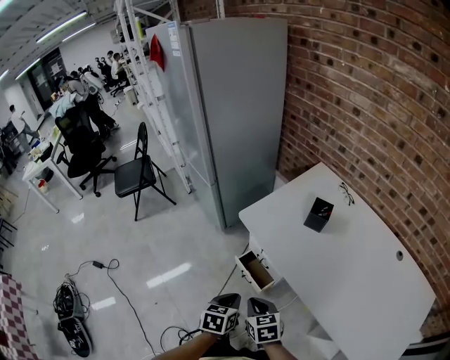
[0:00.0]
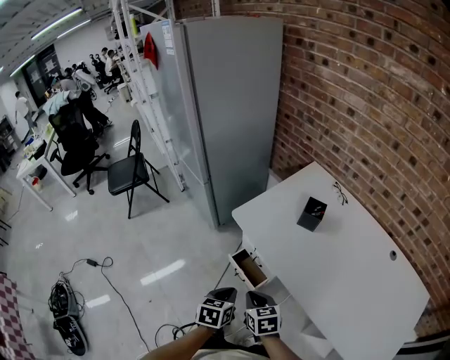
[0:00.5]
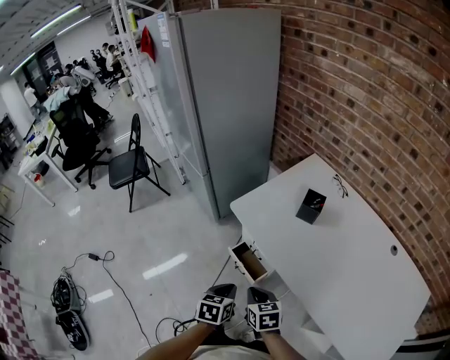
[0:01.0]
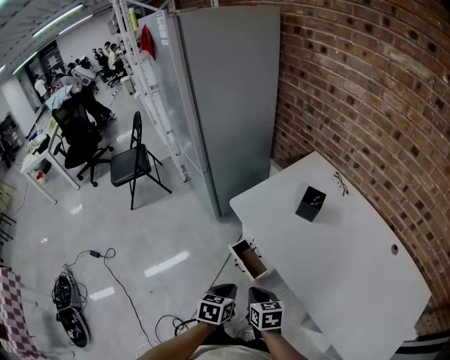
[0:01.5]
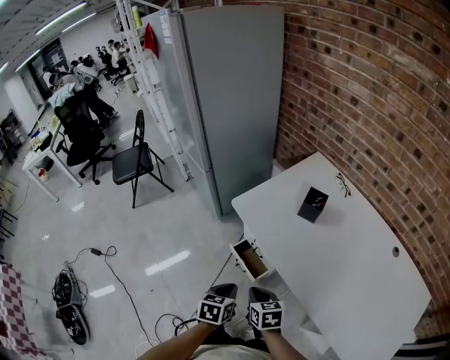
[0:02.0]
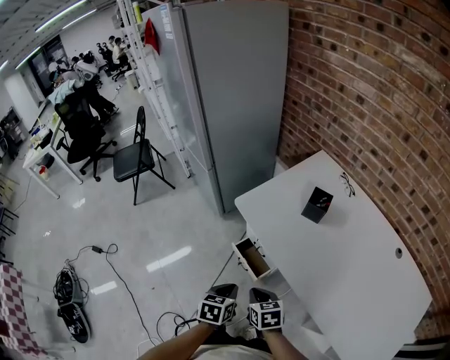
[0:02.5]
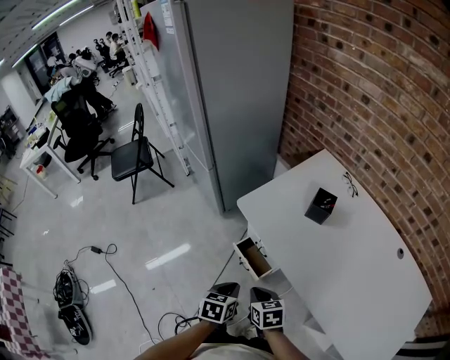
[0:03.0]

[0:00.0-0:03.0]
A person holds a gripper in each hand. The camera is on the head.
0:00.0 to 0:03.0: There are only small adjustments of the grippers.

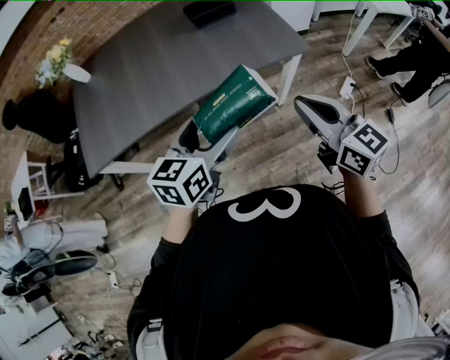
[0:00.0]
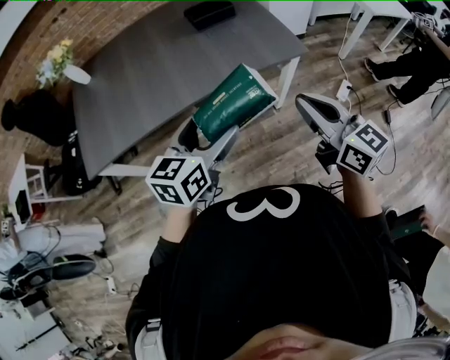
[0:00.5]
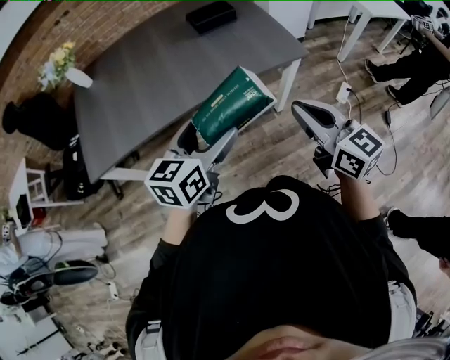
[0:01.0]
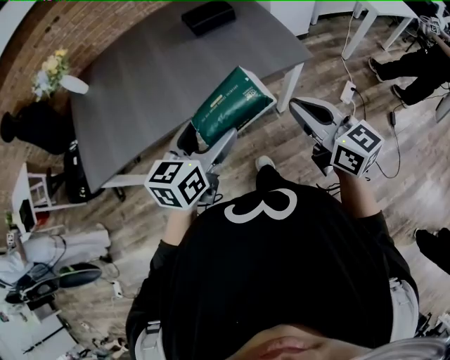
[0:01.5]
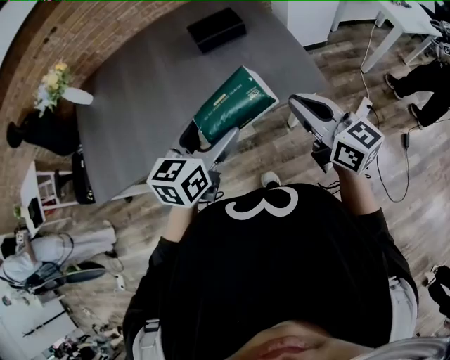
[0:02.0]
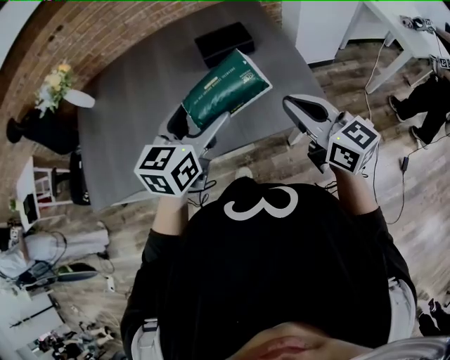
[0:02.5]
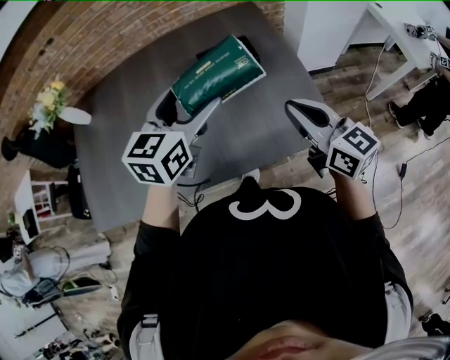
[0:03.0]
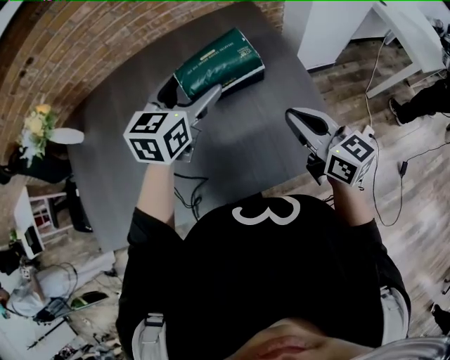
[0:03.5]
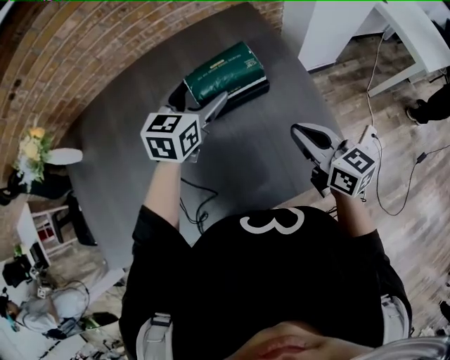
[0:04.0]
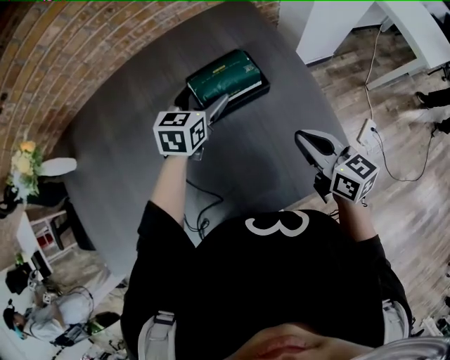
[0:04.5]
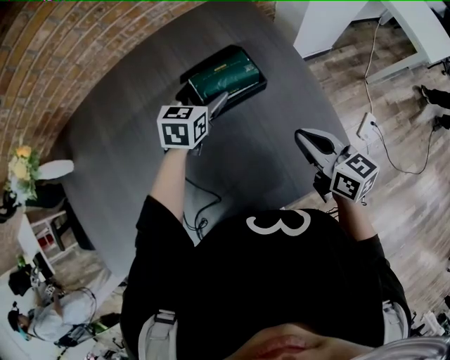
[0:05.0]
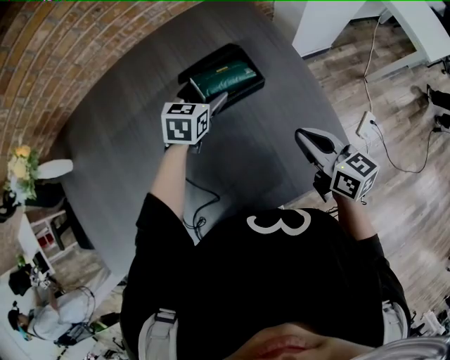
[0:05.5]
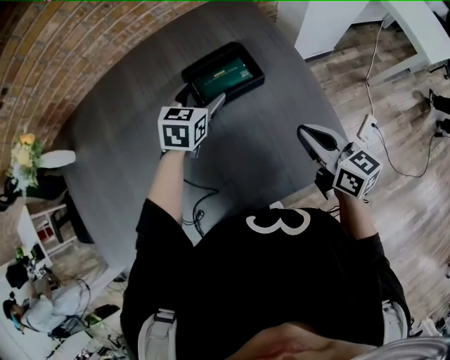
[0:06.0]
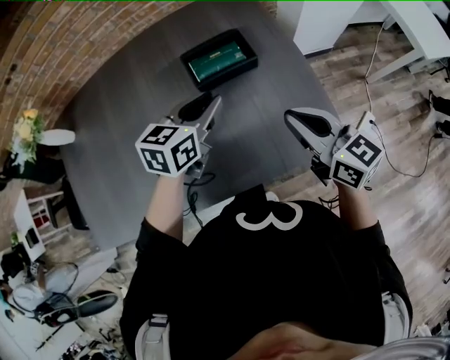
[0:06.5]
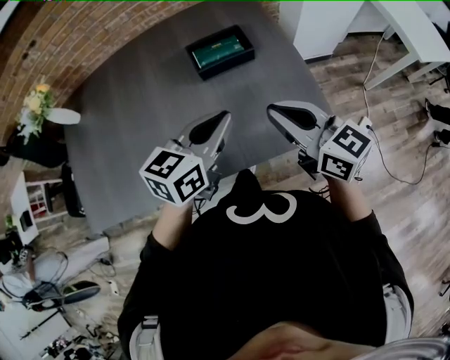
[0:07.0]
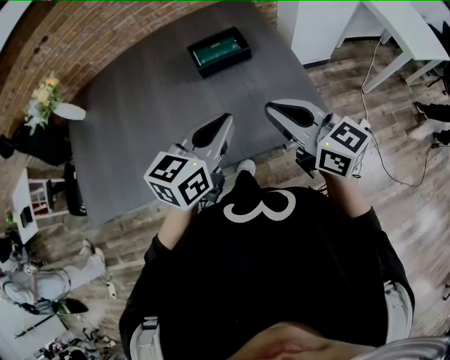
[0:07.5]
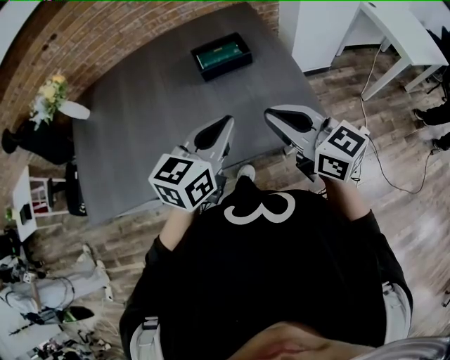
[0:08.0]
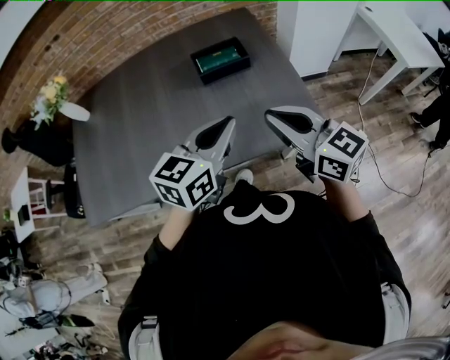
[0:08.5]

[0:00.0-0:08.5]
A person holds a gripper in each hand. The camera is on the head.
0:00.0 to 0:02.0: Both grippers travel together forward, about 20 cm.
0:02.0 to 0:04.0: The left gripper travels forward by roughly 40 cm; the right gripper goes about 25 cm forward.
0:04.0 to 0:06.5: The right gripper travels backward by approximately 5 cm. The left gripper travels backward by about 10 cm, and closes.
0:06.5 to 0:08.5: The right gripper moves backward and upward, about 15 cm. Meanwhile the left gripper goes roughly 20 cm backward.

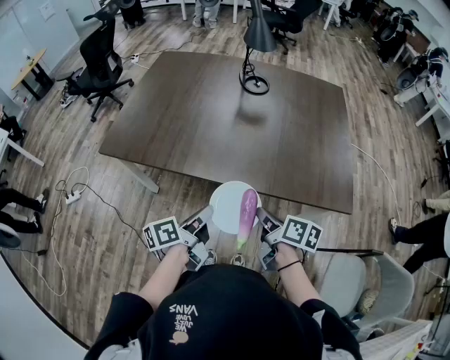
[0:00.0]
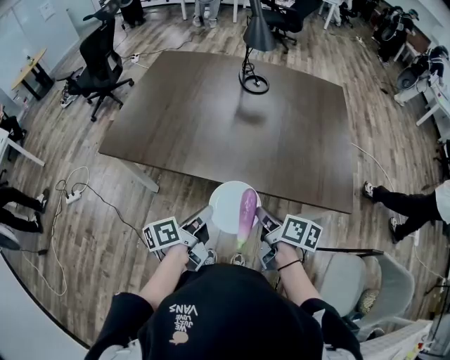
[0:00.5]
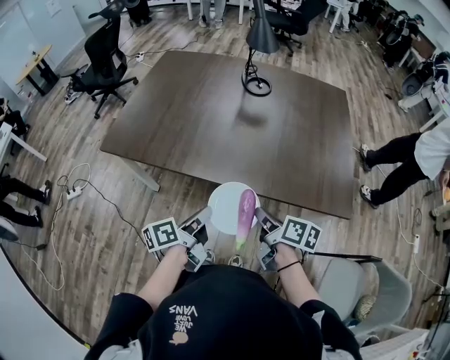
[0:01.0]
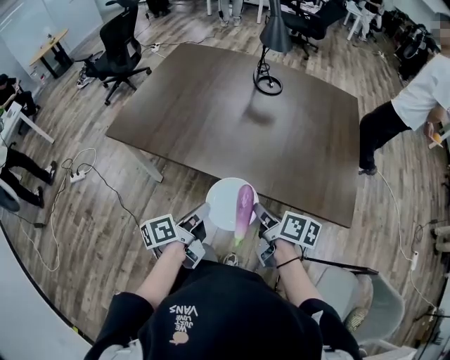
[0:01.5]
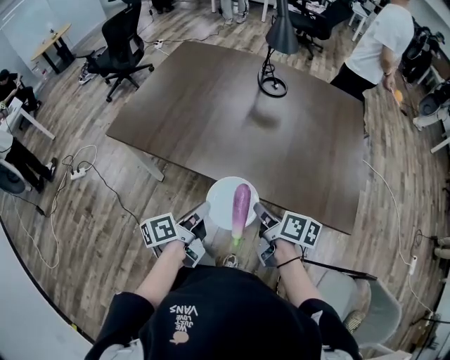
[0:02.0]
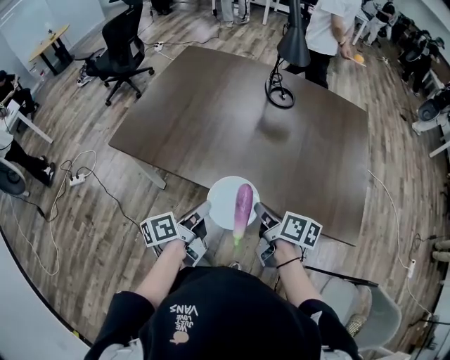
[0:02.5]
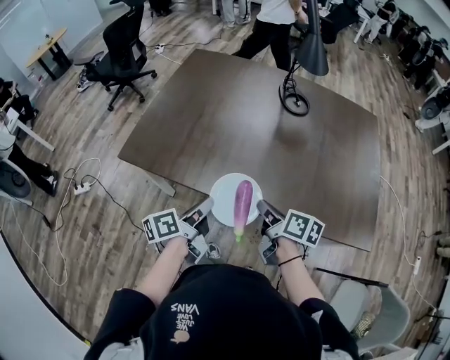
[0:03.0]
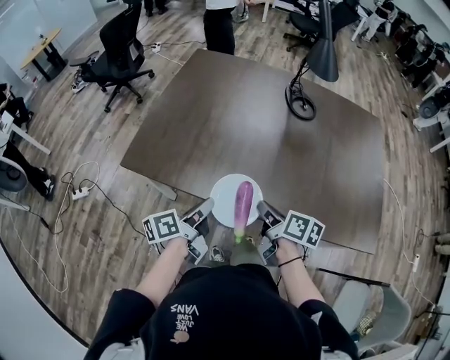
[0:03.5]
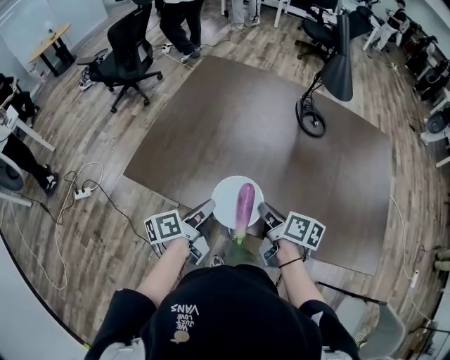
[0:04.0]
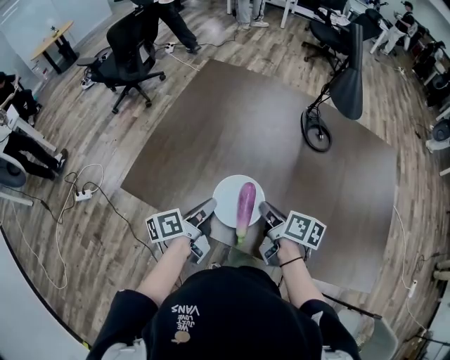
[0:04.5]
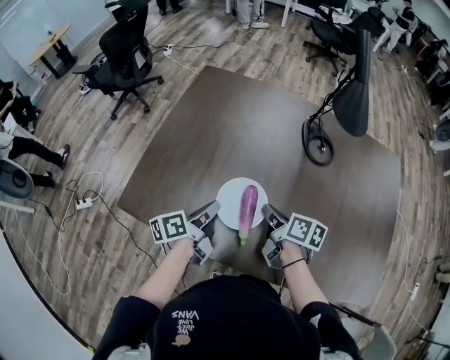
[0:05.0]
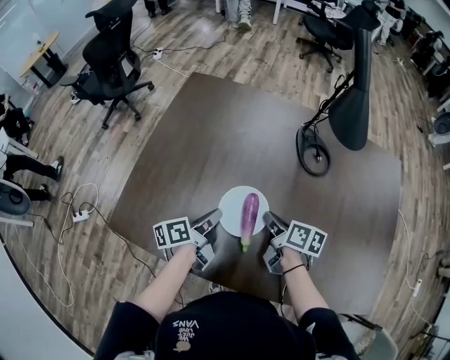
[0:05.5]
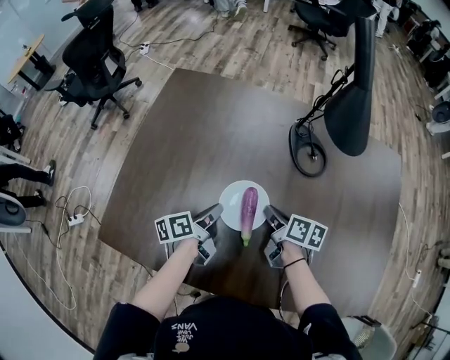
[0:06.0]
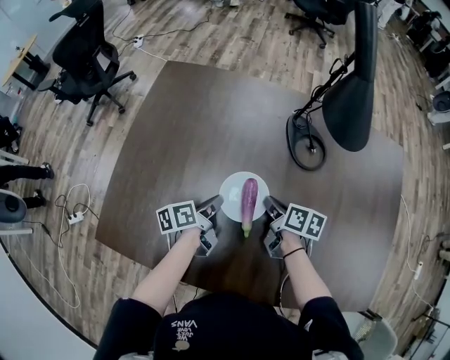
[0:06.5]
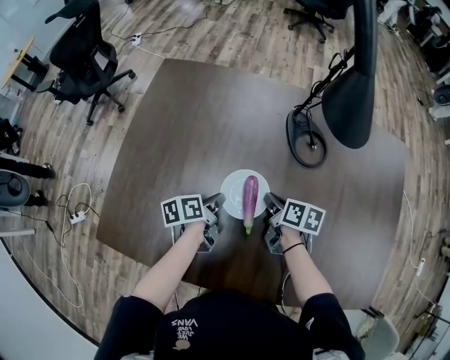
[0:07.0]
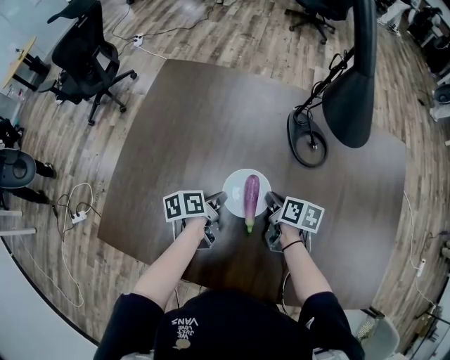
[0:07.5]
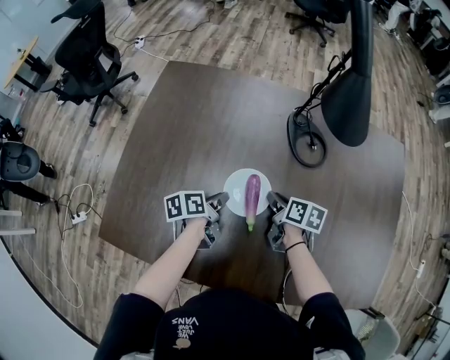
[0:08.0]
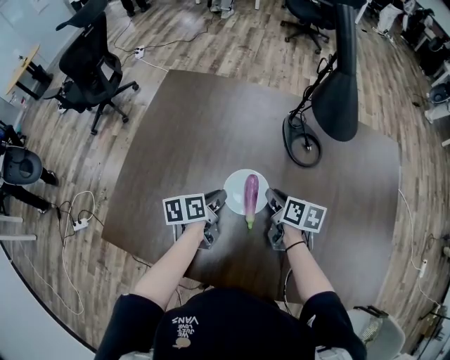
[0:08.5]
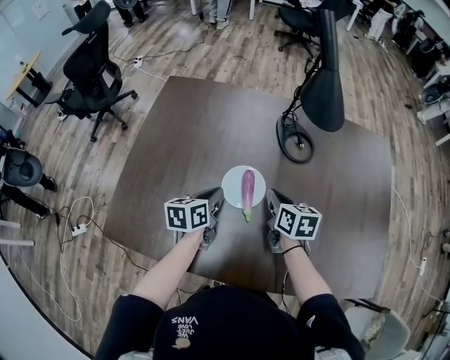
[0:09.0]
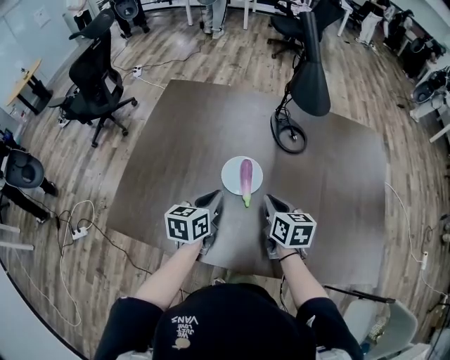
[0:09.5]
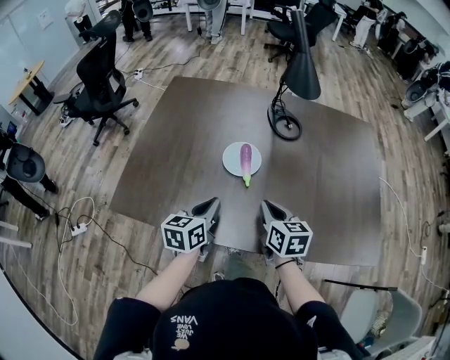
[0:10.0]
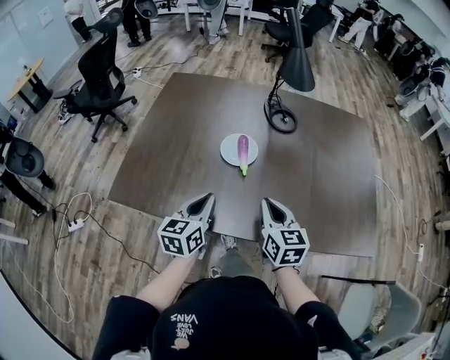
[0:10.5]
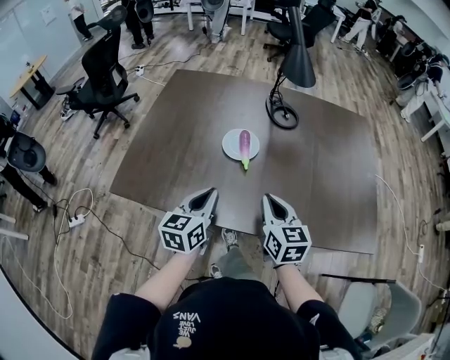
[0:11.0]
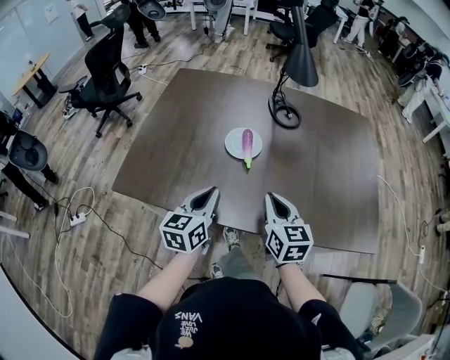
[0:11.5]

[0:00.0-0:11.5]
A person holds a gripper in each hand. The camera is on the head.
0:00.0 to 0:02.0: The grippers stay close to where they were, moving slightly.
0:02.0 to 0:04.0: The two grippers go about 30 cm forward and to the left.
0:04.0 to 0:06.0: Both grippers move forward, about 25 cm.
0:06.0 to 0:07.5: The right gripper ends up about 5 cm from where it was. Meanwhile the left gripper moves some 5 cm.
0:07.5 to 0:09.5: The right gripper shifts roughly 20 cm backward and upward, and turns by roughly 30 degrees. The left gripper goes about 15 cm upward and backward, and turns by some 40 degrees.
0:09.5 to 0:11.5: The grippers both shift backward by roughly 15 cm.

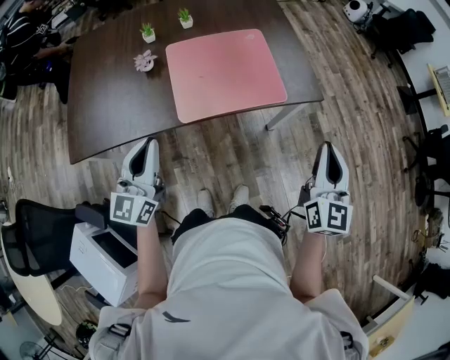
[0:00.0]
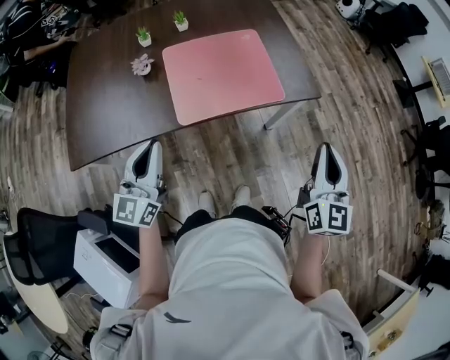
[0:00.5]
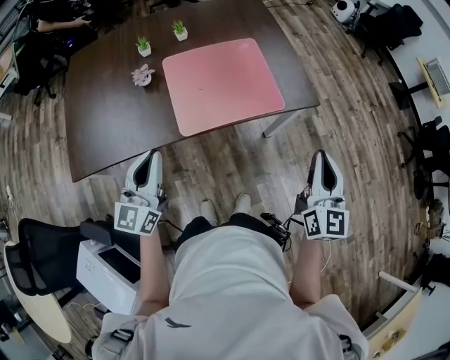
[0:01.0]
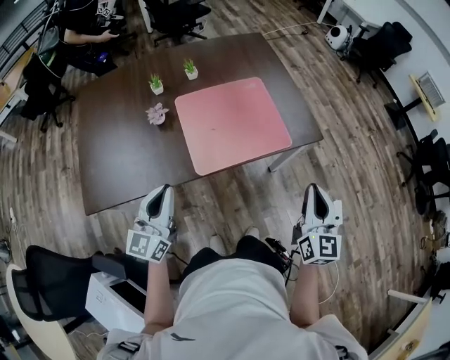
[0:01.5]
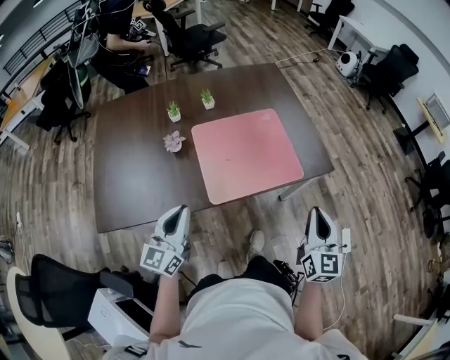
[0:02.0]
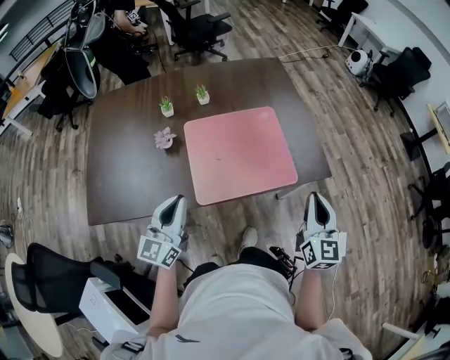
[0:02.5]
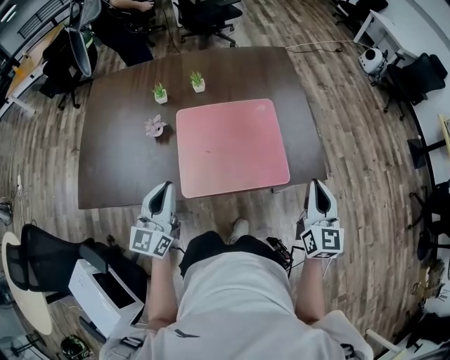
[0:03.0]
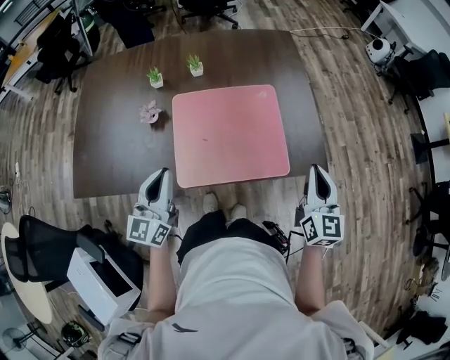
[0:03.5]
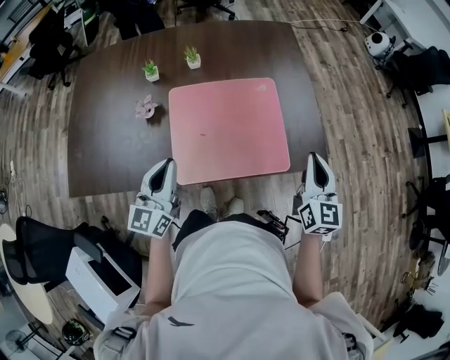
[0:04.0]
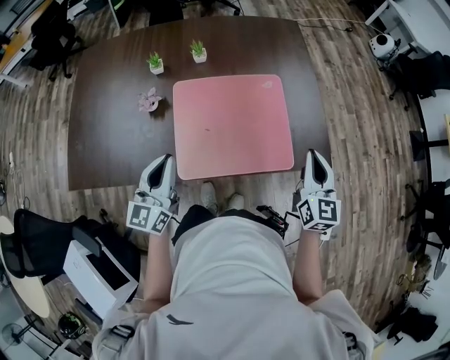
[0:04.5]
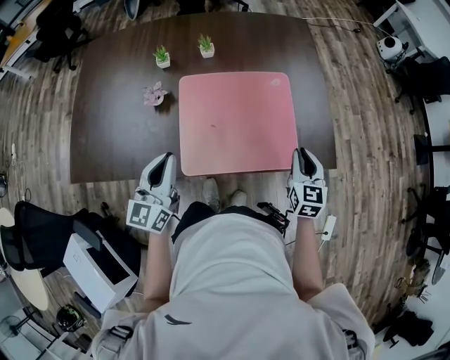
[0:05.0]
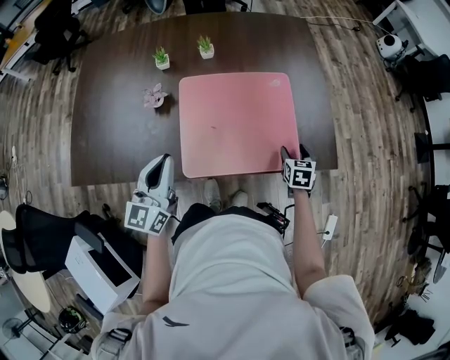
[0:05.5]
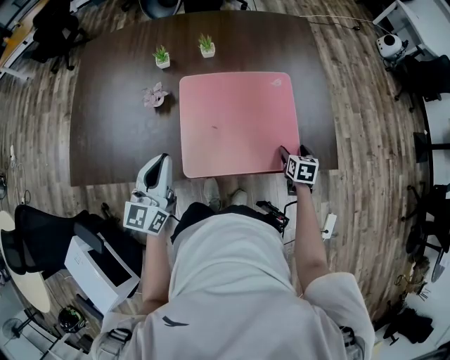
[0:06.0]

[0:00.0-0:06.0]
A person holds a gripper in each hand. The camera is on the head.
0:00.0 to 0:02.0: The right gripper moves to the left, about 10 cm; the left gripper moves to the left, approximately 5 cm.
0:02.0 to 0:04.0: The right gripper shifts approximately 20 cm forward. Meanwhile the left gripper heads forward and to the right, covering some 15 cm.
0:04.0 to 0:06.0: The right gripper shifts about 25 cm downward, angles its fingers downward, by about 40 degrees, and opens its fingers.
